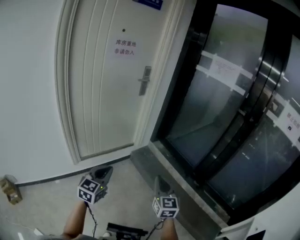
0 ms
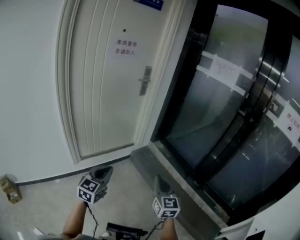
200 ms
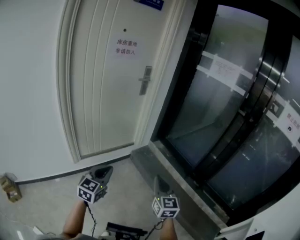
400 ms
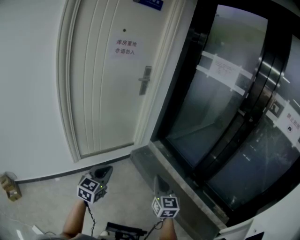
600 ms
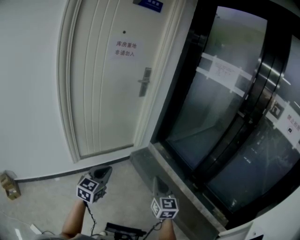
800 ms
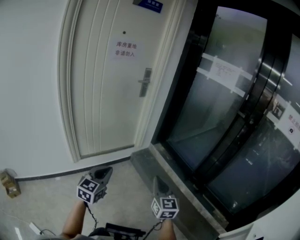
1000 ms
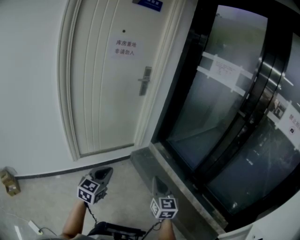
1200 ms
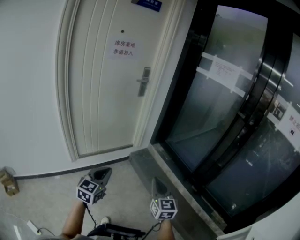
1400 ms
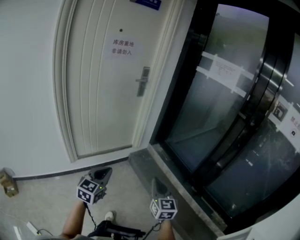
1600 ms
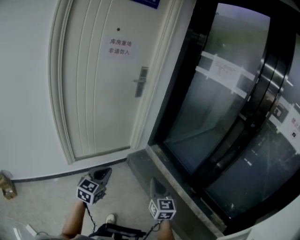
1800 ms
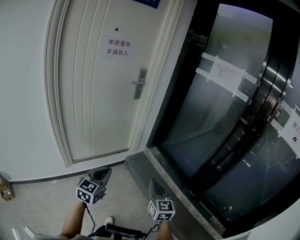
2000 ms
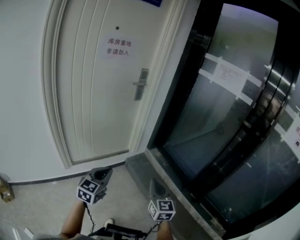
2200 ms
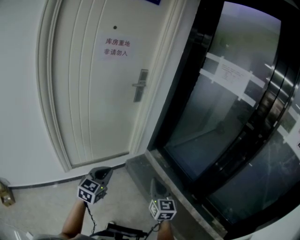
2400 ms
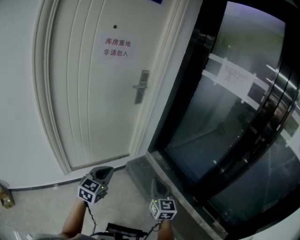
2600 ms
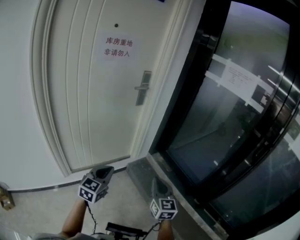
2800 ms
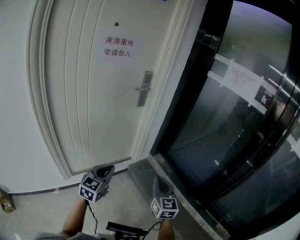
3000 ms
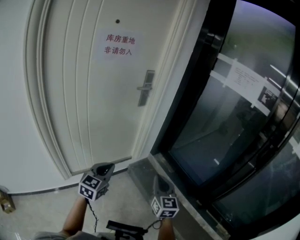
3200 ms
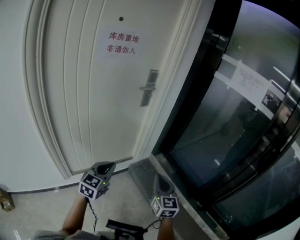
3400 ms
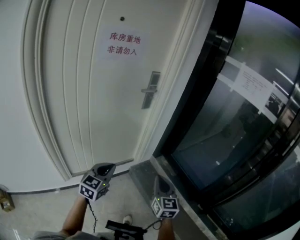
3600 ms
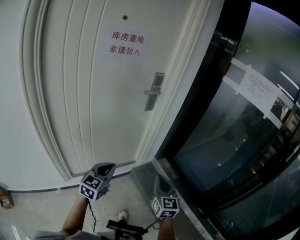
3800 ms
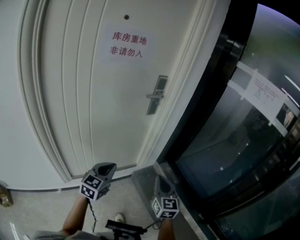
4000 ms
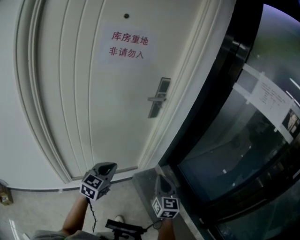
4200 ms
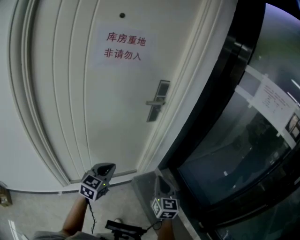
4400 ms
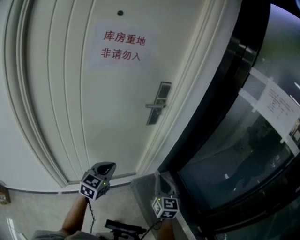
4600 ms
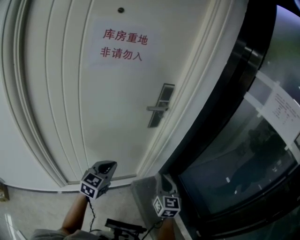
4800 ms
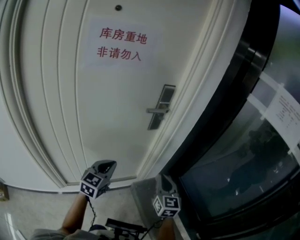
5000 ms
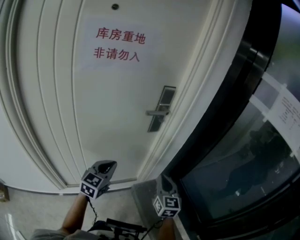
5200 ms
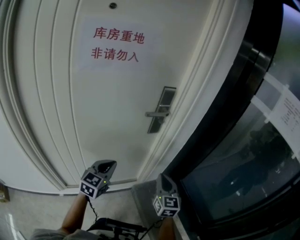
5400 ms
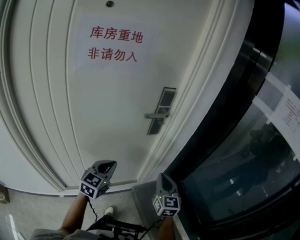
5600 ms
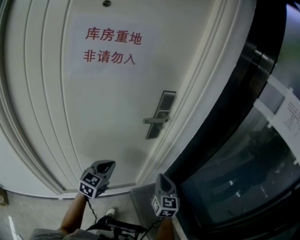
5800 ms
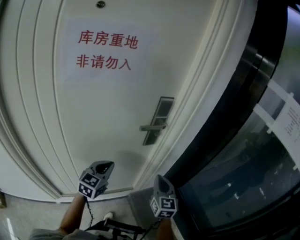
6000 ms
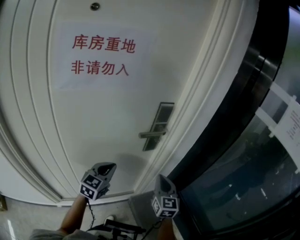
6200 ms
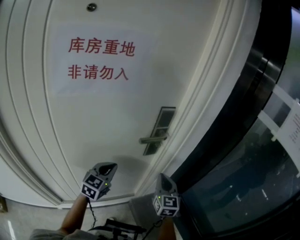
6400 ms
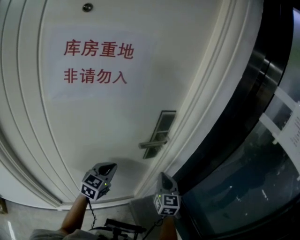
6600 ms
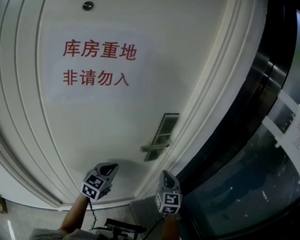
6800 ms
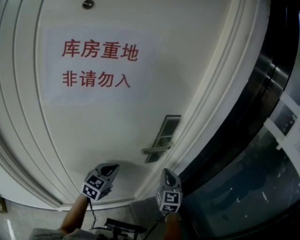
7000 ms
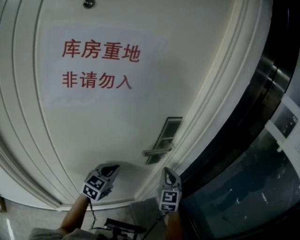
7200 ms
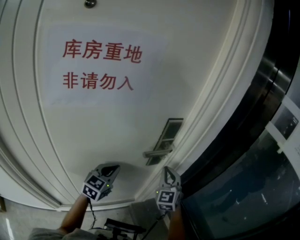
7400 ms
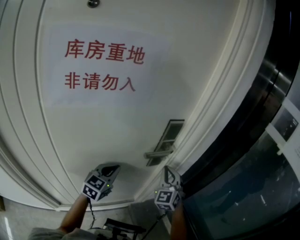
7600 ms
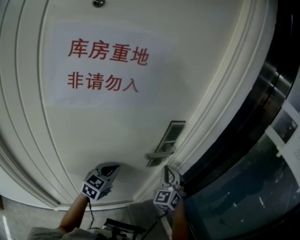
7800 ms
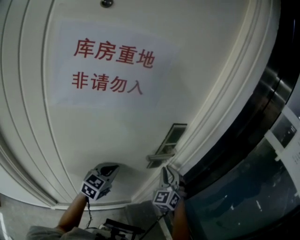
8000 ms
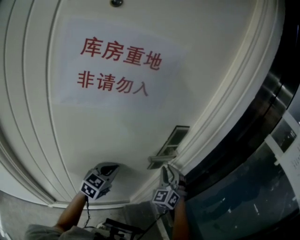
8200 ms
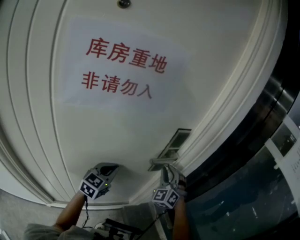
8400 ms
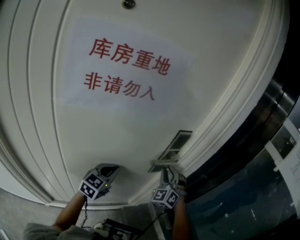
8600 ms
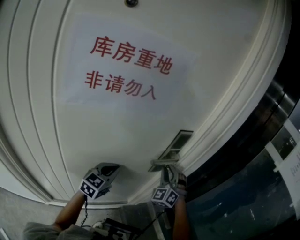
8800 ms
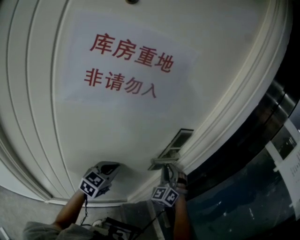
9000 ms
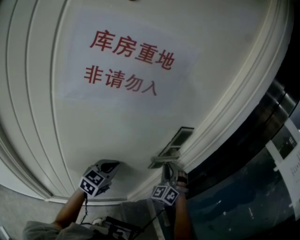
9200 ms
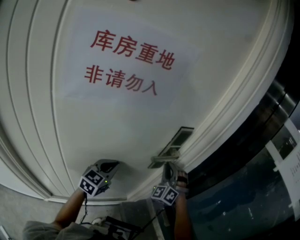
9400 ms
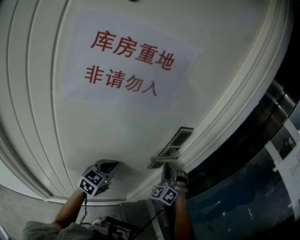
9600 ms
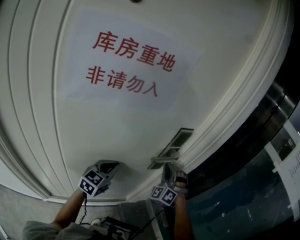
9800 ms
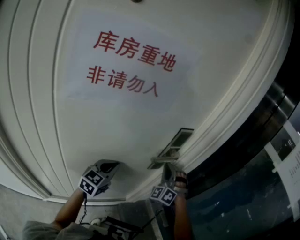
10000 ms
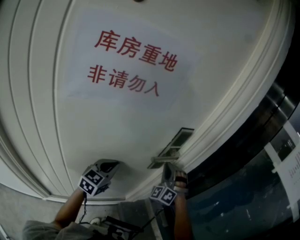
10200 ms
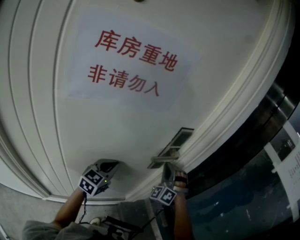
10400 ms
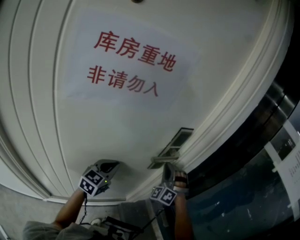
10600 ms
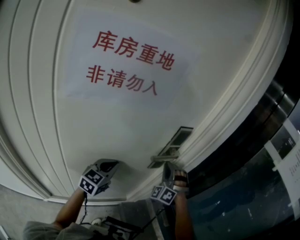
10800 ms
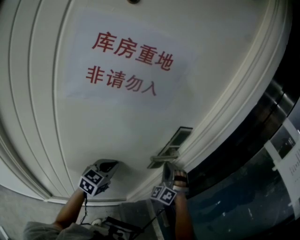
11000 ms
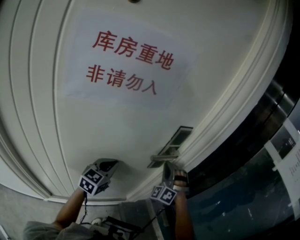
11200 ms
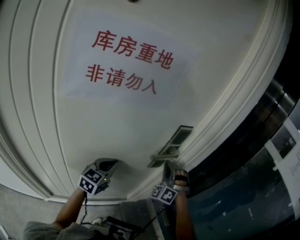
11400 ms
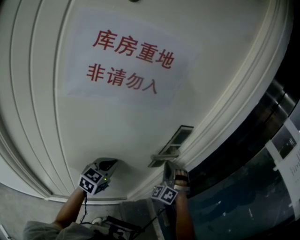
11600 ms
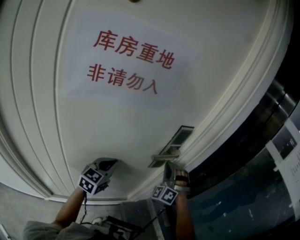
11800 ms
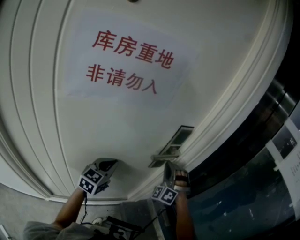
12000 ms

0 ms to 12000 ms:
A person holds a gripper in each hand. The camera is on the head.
0 ms to 1600 ms: Both grippers move to the right, approximately 5 cm.
1600 ms to 3000 ms: The grippers both shift forward by about 25 cm.
3000 ms to 4400 ms: Both grippers travel together forward, about 20 cm.
4400 ms to 6000 ms: Both grippers travel together forward, roughly 25 cm.
6000 ms to 7600 ms: Both grippers move forward, roughly 15 cm. The right gripper swivels some 30 degrees.
7600 ms to 9000 ms: The right gripper swivels approximately 30 degrees.
9000 ms to 10400 ms: The grippers move only a little.
10400 ms to 12000 ms: Neither gripper changes place.

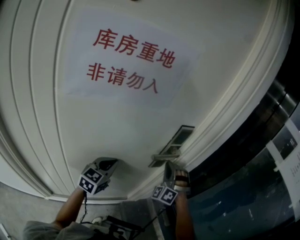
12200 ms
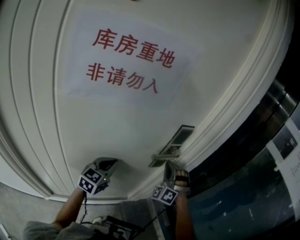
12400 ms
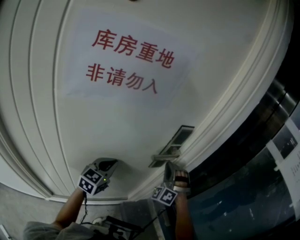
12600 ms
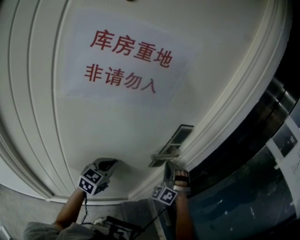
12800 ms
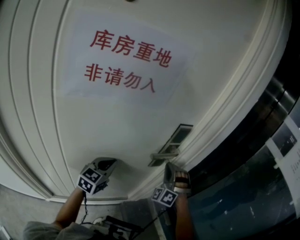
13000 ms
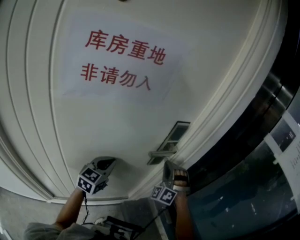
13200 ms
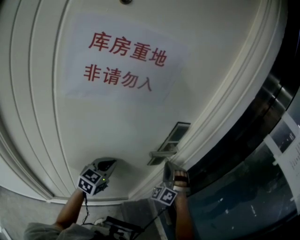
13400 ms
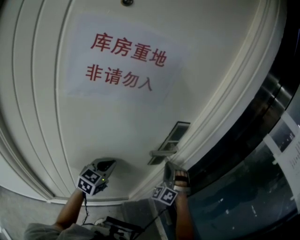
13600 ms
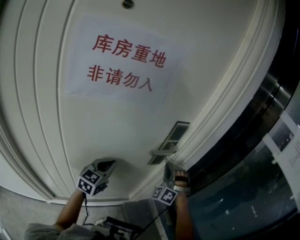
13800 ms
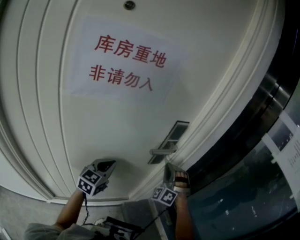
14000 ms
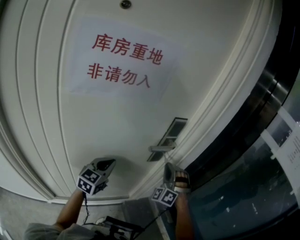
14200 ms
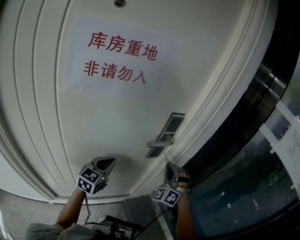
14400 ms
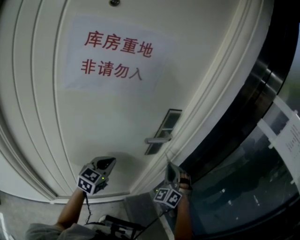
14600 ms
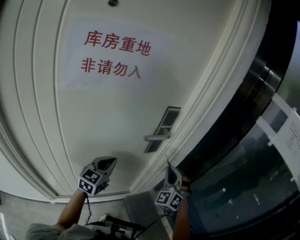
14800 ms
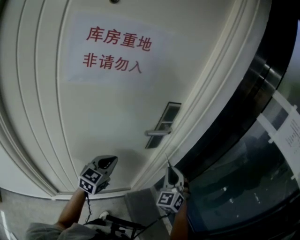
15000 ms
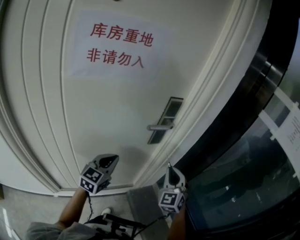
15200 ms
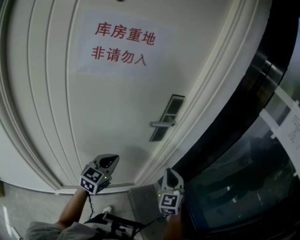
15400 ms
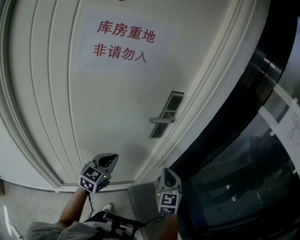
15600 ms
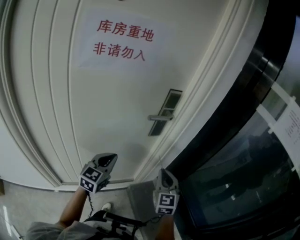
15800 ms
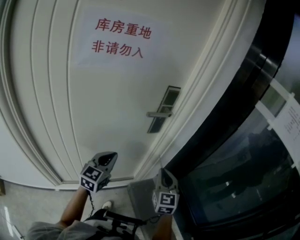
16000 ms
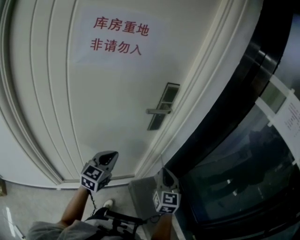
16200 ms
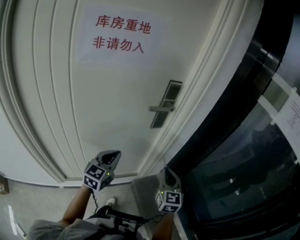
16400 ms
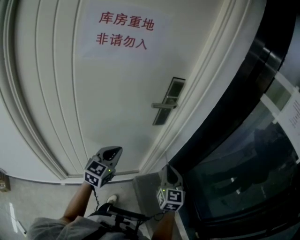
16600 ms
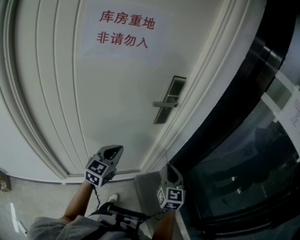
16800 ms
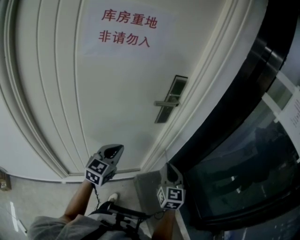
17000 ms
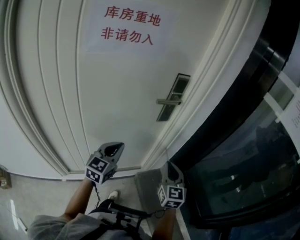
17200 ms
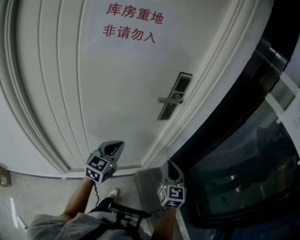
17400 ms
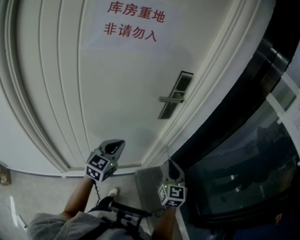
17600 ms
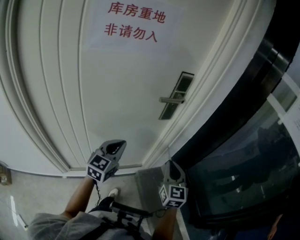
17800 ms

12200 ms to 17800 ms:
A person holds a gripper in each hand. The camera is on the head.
12200 ms to 13600 ms: The grippers move only a little.
13600 ms to 15000 ms: The right gripper travels backward and to the right by roughly 15 cm, and turns by about 40 degrees. Meanwhile the left gripper is displaced backward by some 5 cm.
15000 ms to 16400 ms: The left gripper moves backward, roughly 10 cm. The right gripper travels backward and downward by roughly 10 cm, and rolls clockwise, seen from behind, by approximately 40 degrees.
16400 ms to 17800 ms: The grippers make only small movements.

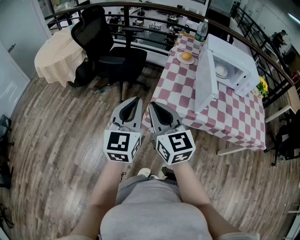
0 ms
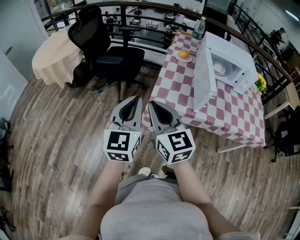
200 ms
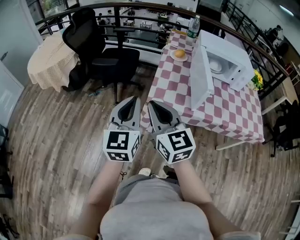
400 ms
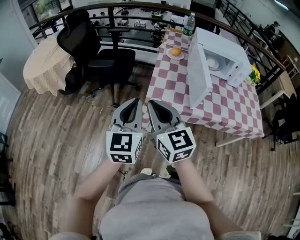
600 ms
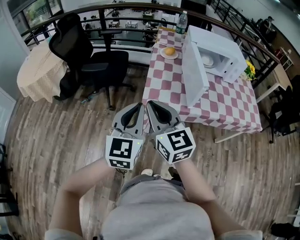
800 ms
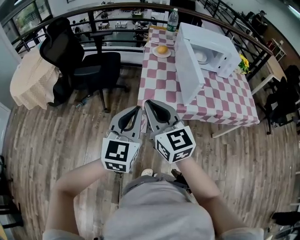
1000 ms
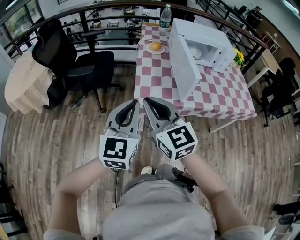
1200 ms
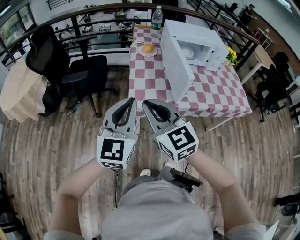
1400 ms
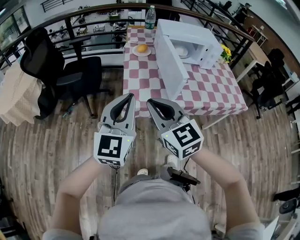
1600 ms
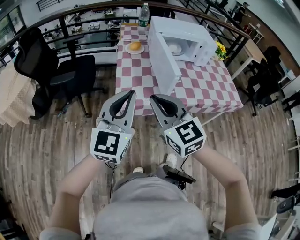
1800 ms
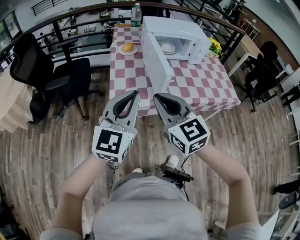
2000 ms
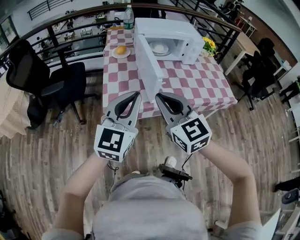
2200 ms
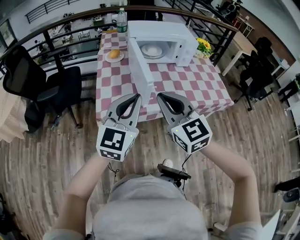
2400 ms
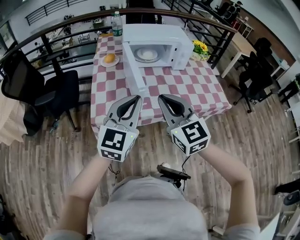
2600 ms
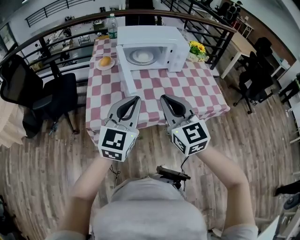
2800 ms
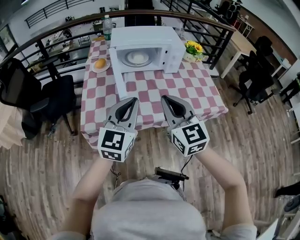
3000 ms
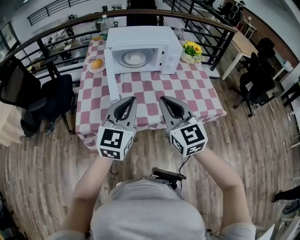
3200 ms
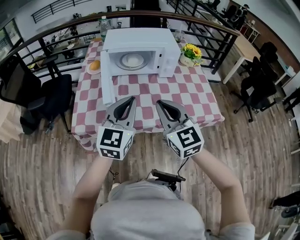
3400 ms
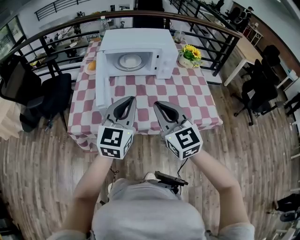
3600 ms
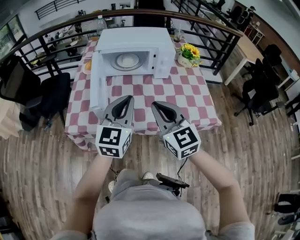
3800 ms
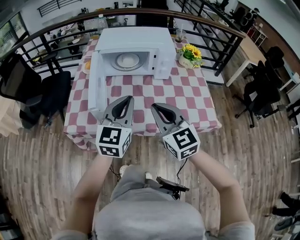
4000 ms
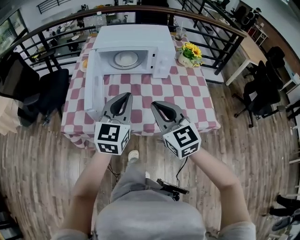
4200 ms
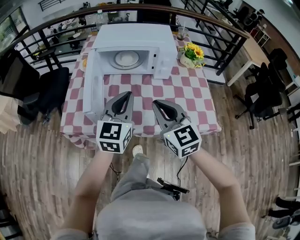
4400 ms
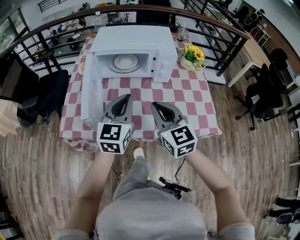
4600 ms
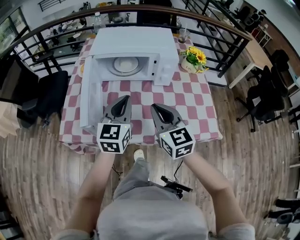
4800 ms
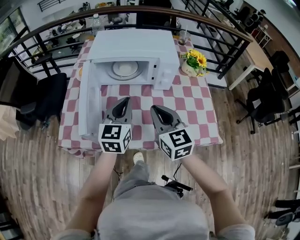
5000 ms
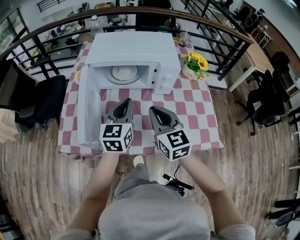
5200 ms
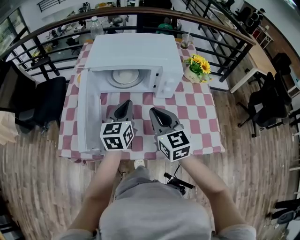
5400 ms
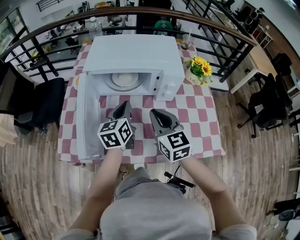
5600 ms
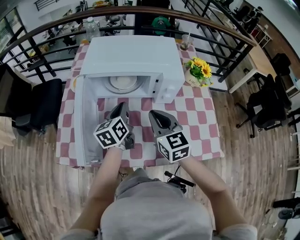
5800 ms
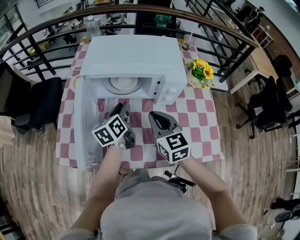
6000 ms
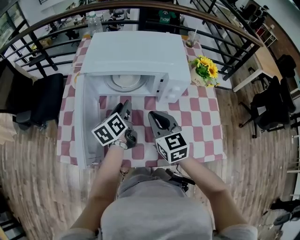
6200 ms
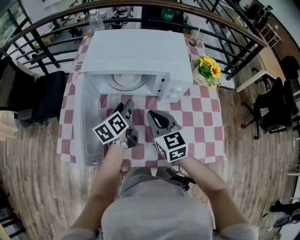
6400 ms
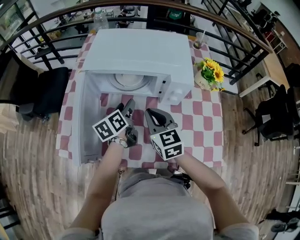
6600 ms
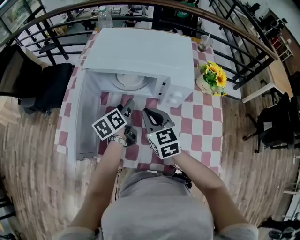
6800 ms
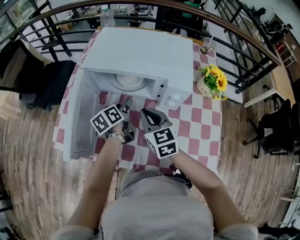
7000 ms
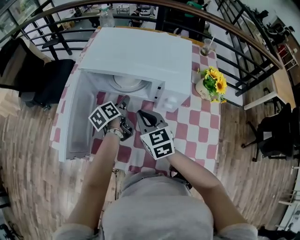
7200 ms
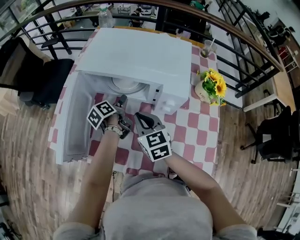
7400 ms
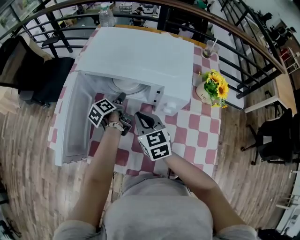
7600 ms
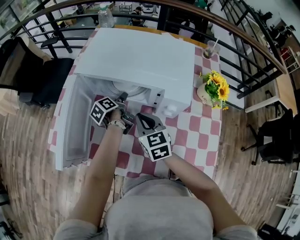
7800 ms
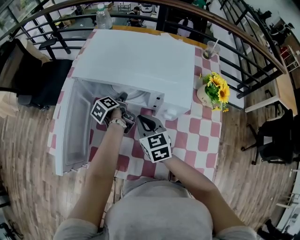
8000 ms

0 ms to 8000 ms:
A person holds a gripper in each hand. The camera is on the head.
0 ms to 1600 ms: The grippers both shift to the right by some 5 cm. The left gripper changes its angle by approximately 20 degrees.
1600 ms to 3200 ms: The left gripper goes about 35 cm to the right and forward, while the right gripper shifts approximately 35 cm to the right.
3200 ms to 4800 ms: The left gripper goes approximately 15 cm forward and to the right. The right gripper travels forward, to the right and downward by roughly 15 cm.
4800 ms to 6400 ms: The two grippers go roughly 20 cm forward and downward. The left gripper rolls counterclockwise, seen from behind, by about 50 degrees, and opens its fingers.
6400 ms to 8000 ms: The left gripper is displaced downward and forward by some 15 cm, and swivels some 40 degrees, while the right gripper is displaced forward and downward by approximately 10 cm.
